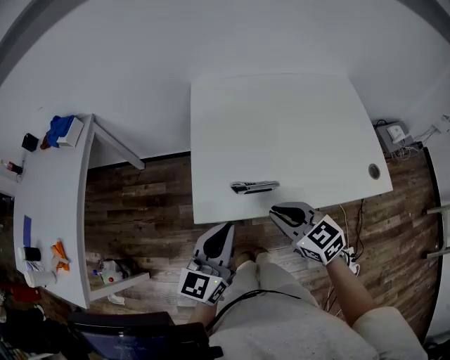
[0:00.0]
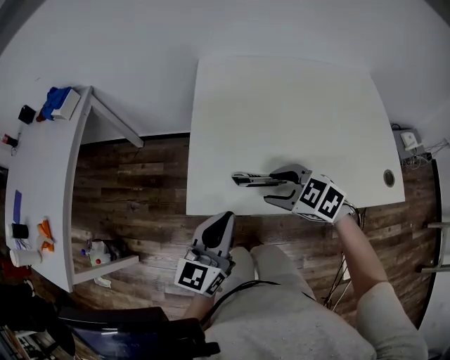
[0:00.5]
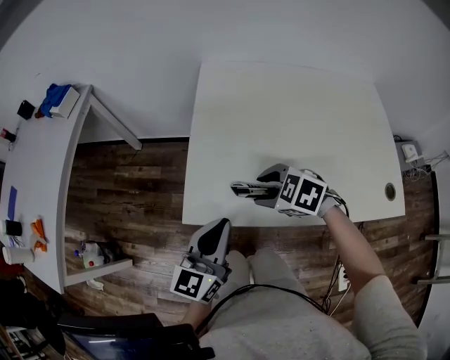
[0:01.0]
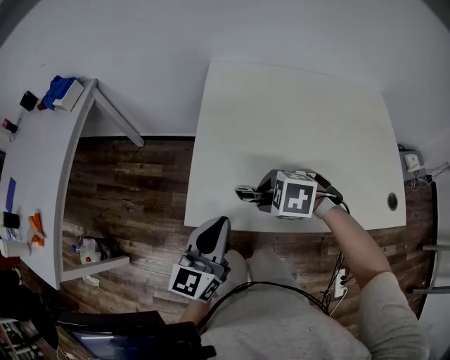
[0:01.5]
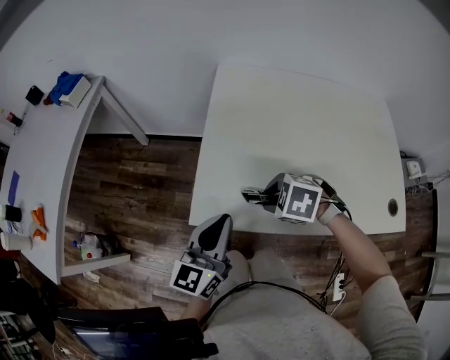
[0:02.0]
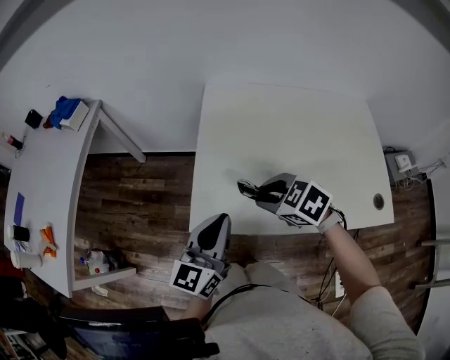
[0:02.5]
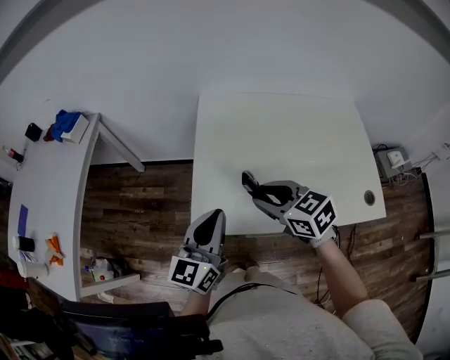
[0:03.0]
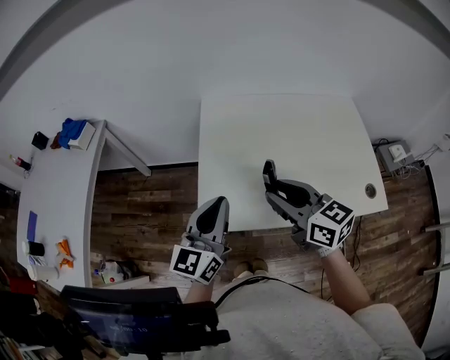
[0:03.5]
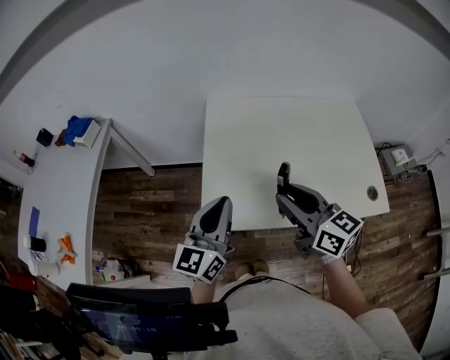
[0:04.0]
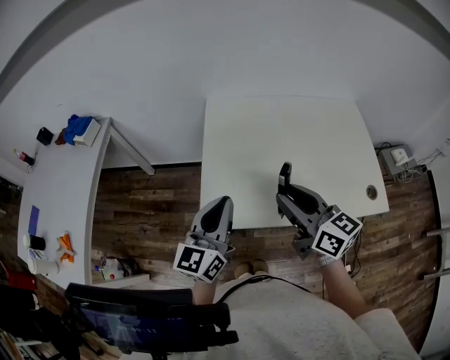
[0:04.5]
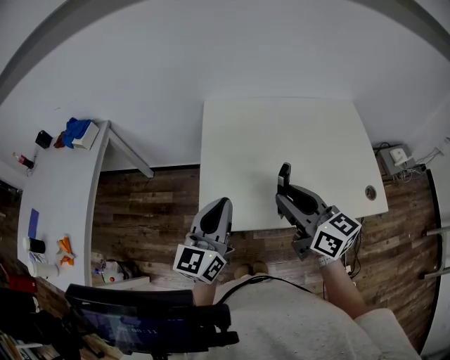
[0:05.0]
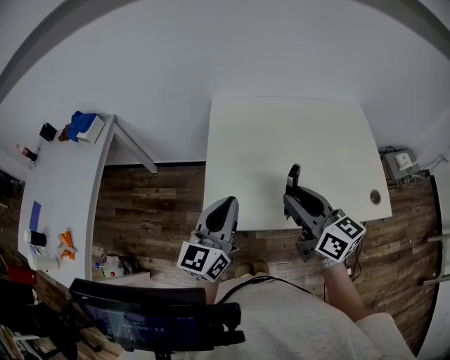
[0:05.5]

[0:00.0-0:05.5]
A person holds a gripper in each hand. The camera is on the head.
0.0 to 2.0 s: The left gripper shifts some 5 cm downward. The right gripper heads downward, covering some 10 cm, points its fingers some 40 degrees further downward, and opens.
2.0 to 3.5 s: The left gripper shifts roughly 15 cm upward; the right gripper shifts roughly 25 cm upward, and angles its fingers upward, by some 60 degrees.
3.5 to 5.5 s: The grippers stay close to where they were, moving slightly.

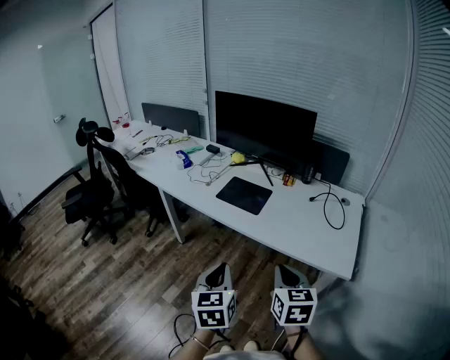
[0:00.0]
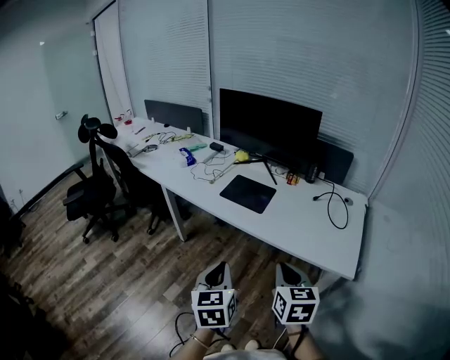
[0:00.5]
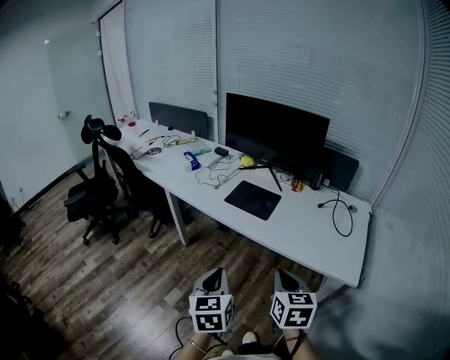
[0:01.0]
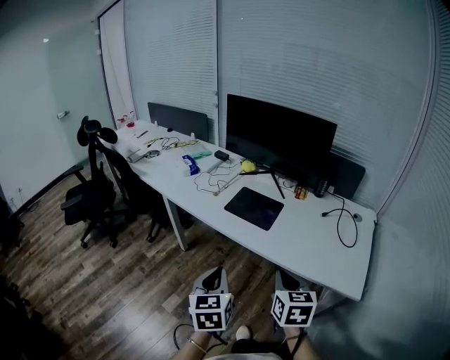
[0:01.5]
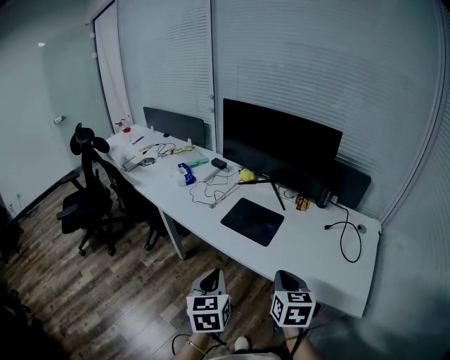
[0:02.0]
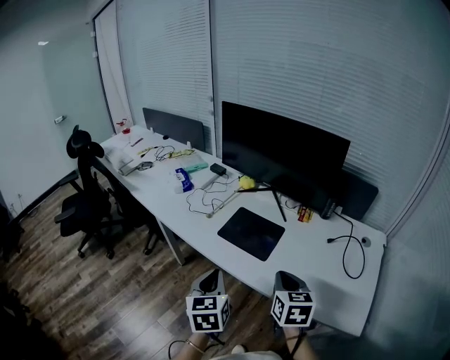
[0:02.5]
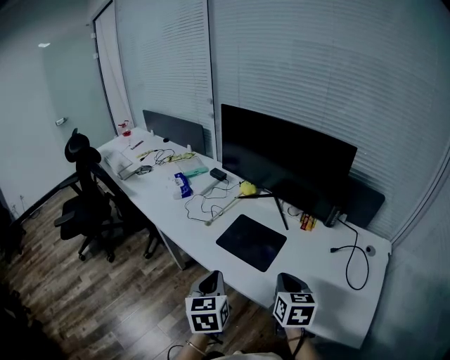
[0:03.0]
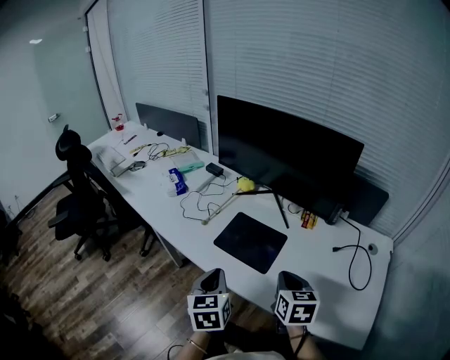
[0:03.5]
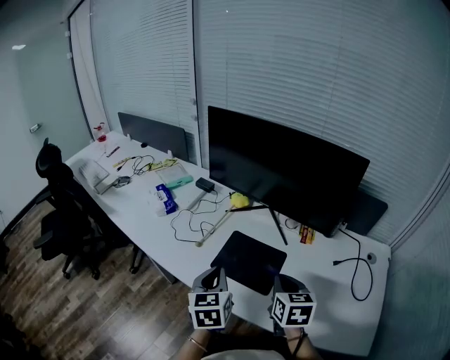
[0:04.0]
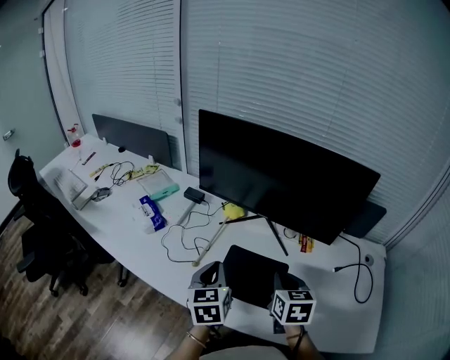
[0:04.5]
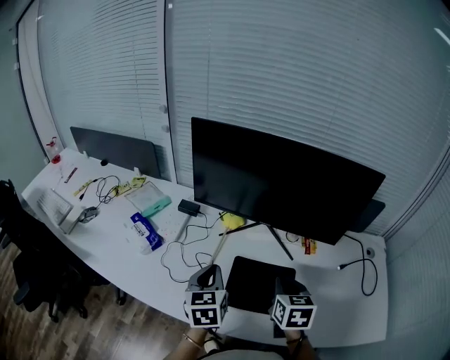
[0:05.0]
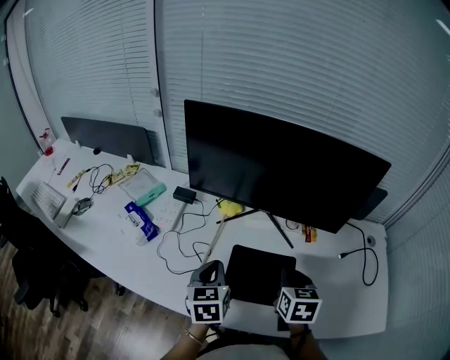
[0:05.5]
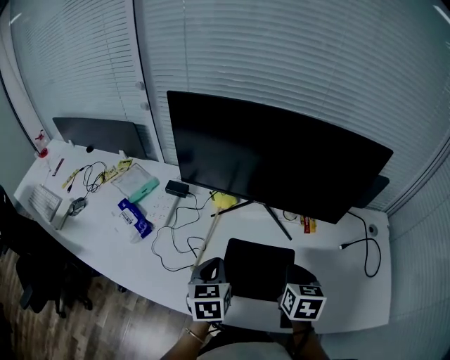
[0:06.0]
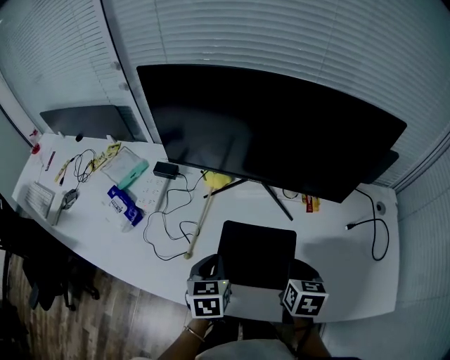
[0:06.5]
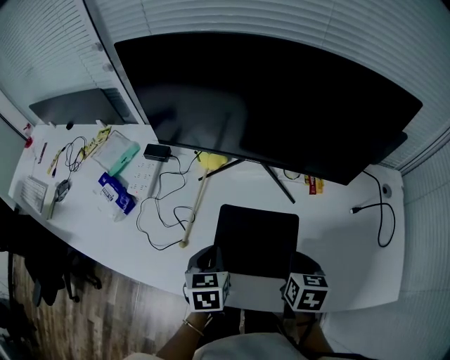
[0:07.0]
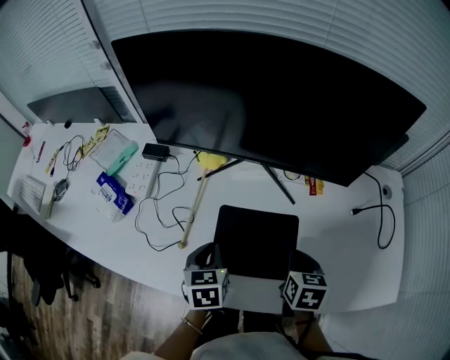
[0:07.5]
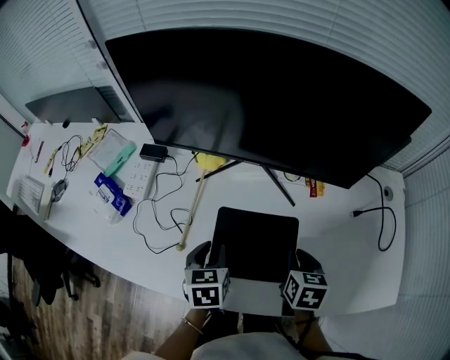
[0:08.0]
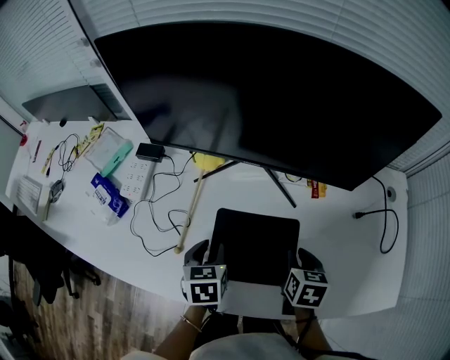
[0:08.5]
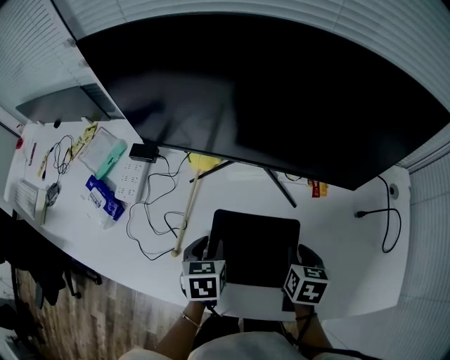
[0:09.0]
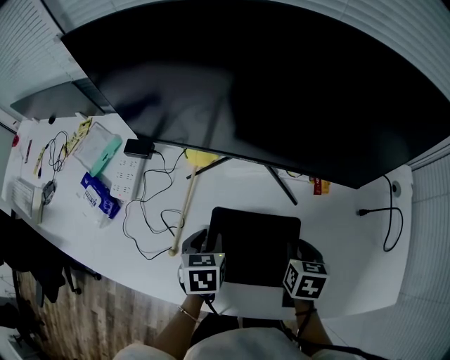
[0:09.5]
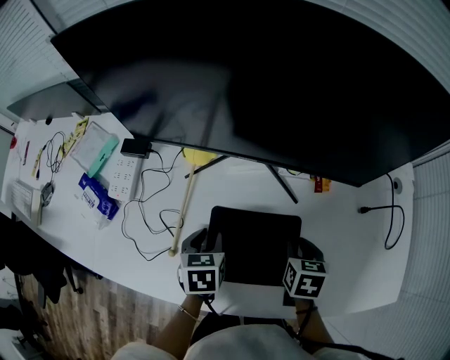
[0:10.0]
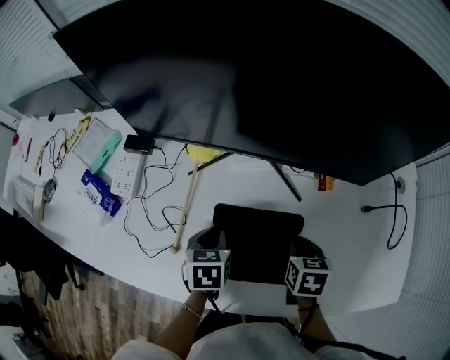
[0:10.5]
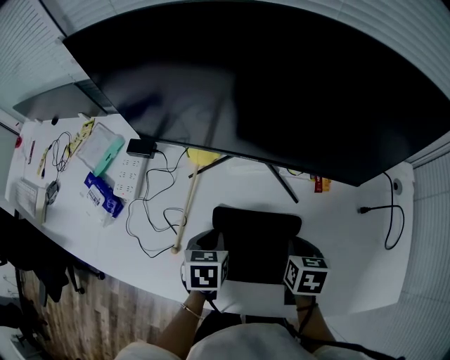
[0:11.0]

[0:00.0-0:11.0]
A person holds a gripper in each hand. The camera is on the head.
0.0 to 2.0 s: Both grippers move forward, some 15 cm.
2.0 to 3.5 s: The grippers both shift forward by about 15 cm.
3.5 to 5.5 s: The left gripper ends up approximately 25 cm from where it was, and turns by some 20 degrees. Meanwhile the right gripper ends up some 15 cm from where it was, and turns by about 20 degrees.
5.5 to 7.5 s: The right gripper goes about 10 cm downward and to the right. The left gripper shifts approximately 10 cm downward.
7.5 to 9.0 s: The left gripper changes place by about 5 cm, and opens. The right gripper changes place by roughly 5 cm, and opens.
9.0 to 11.0 s: The left gripper closes its fingers.

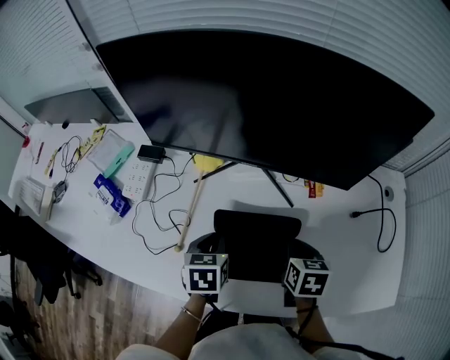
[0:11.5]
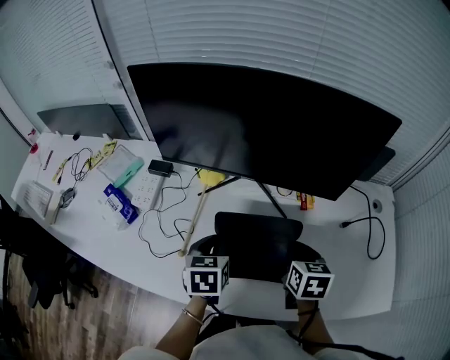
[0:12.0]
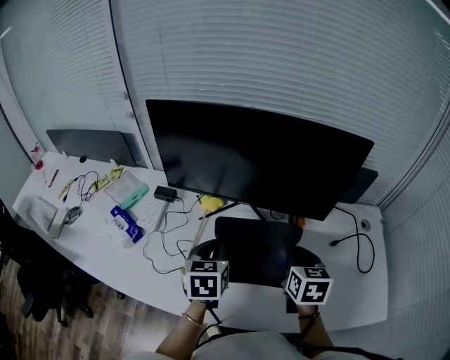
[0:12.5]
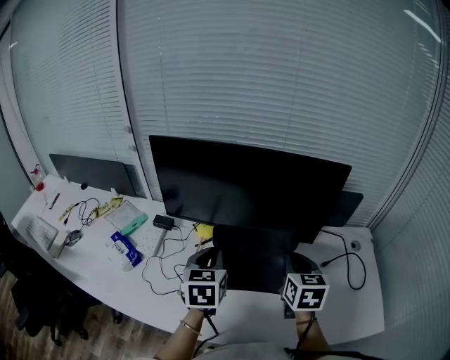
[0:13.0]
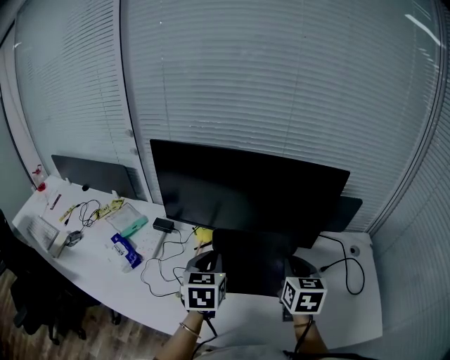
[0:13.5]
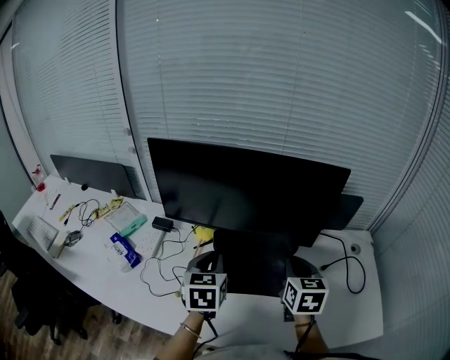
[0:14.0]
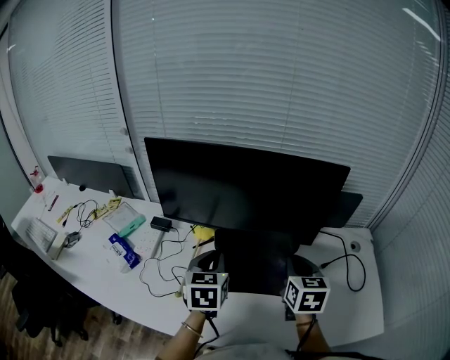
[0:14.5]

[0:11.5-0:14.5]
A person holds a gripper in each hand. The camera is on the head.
11.5 to 13.0 s: The two grippers go approximately 20 cm upward. The right gripper turns by approximately 30 degrees, while the left gripper swivels about 30 degrees.
13.0 to 14.5 s: The grippers stay close to where they were, moving slightly.

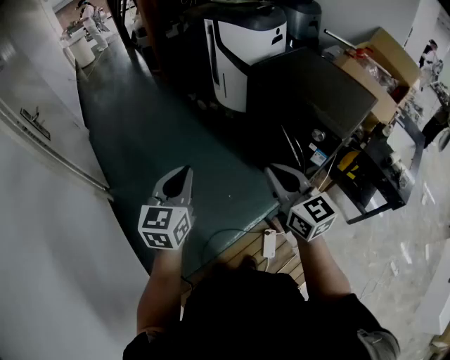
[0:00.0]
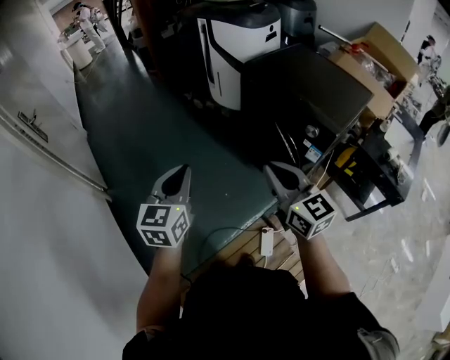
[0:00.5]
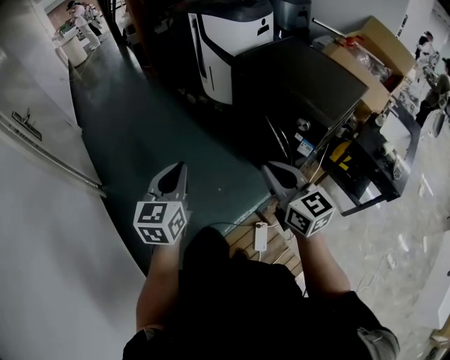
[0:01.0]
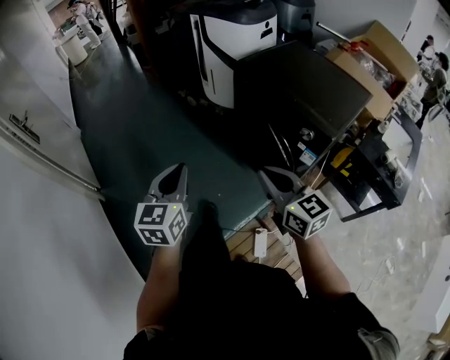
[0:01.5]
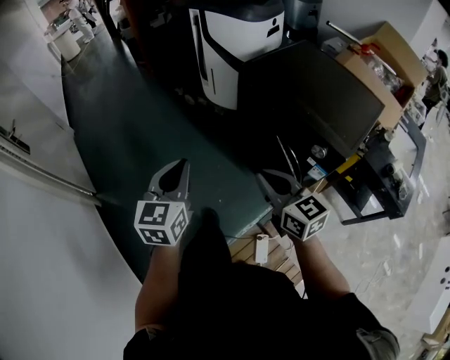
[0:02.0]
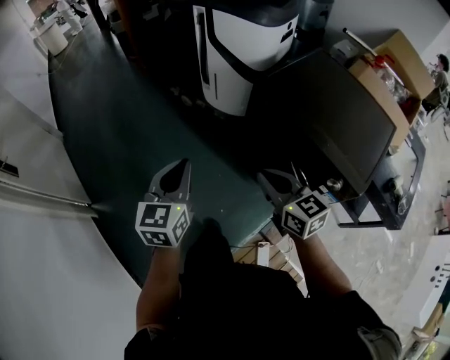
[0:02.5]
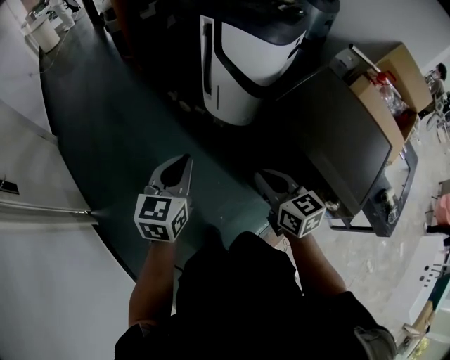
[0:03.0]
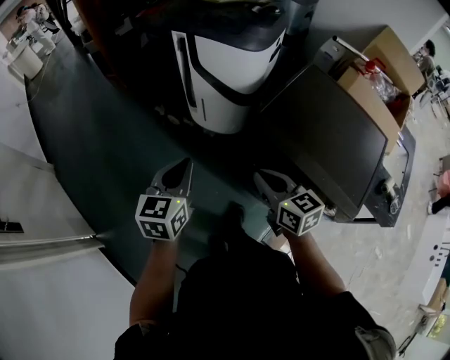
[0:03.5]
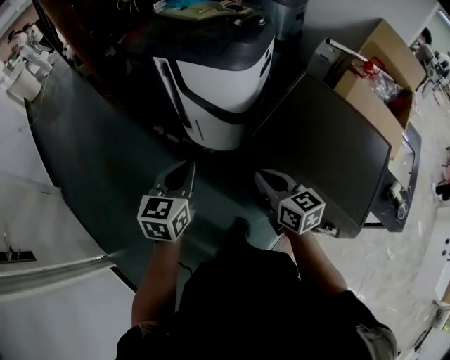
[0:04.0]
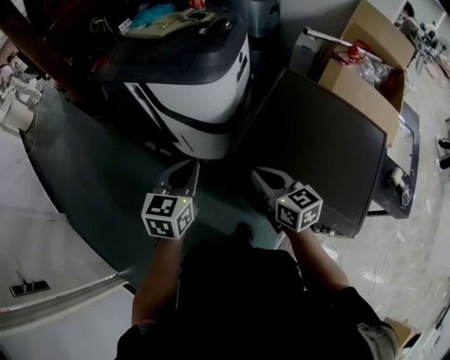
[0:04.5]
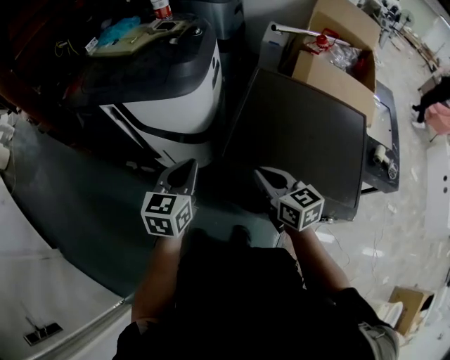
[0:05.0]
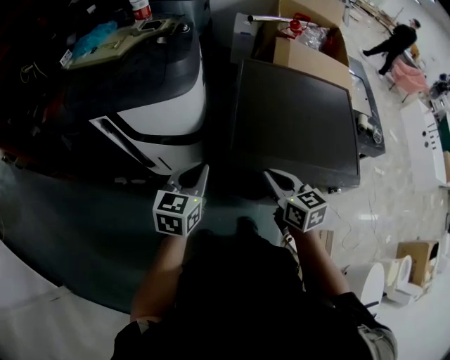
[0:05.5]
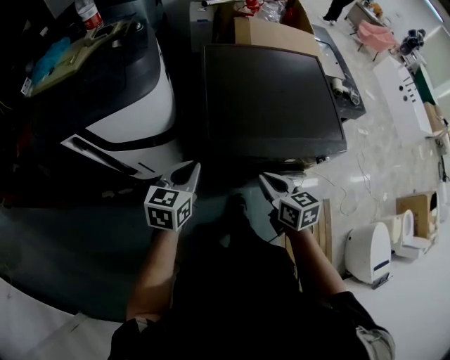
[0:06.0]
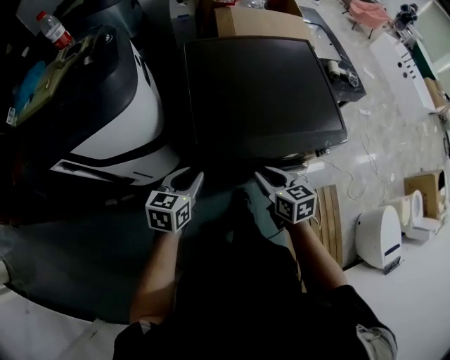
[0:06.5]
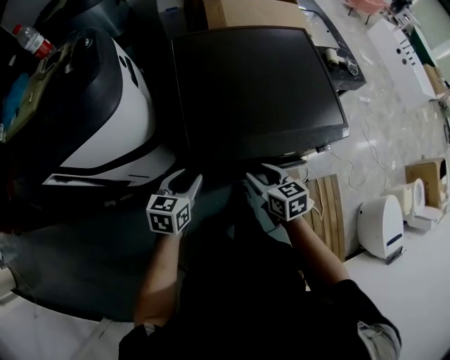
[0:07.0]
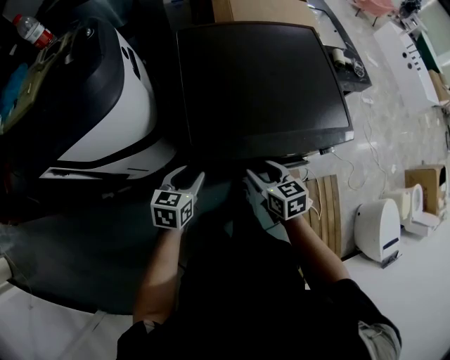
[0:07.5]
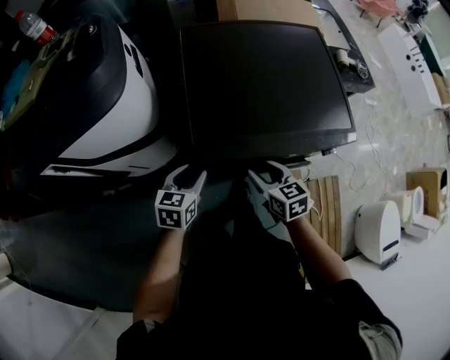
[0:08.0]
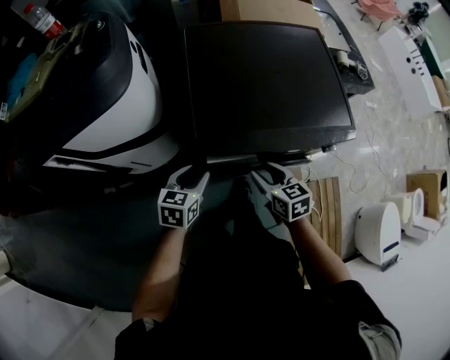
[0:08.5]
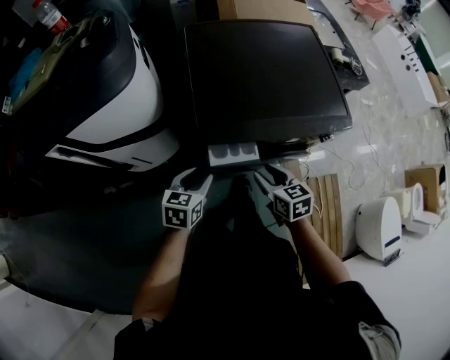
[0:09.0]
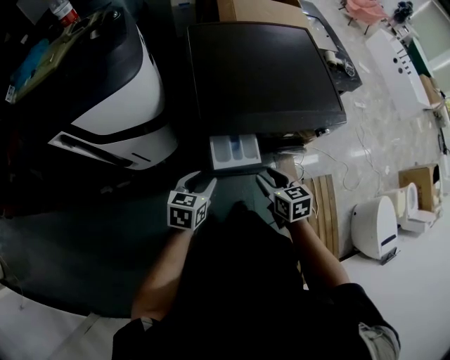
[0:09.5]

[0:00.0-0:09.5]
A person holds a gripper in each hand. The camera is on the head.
0.0 to 2.0 s: The right gripper shifts roughly 15 cm forward and downward; the left gripper moves forward and to the right, roughly 15 cm.
2.0 to 4.0 s: The two grippers travel together, forward, some 50 cm.
4.0 to 5.5 s: The right gripper turns by roughly 40 degrees, while the left gripper ends up approximately 15 cm from where it was, and rotates approximately 40 degrees.
5.5 to 7.5 s: The grippers both shift downward and to the right by approximately 20 cm. The left gripper turns by some 20 degrees, and opens its fingers, while the right gripper opens its fingers.
7.5 to 9.5 s: The grippers both shift backward by about 10 cm.
